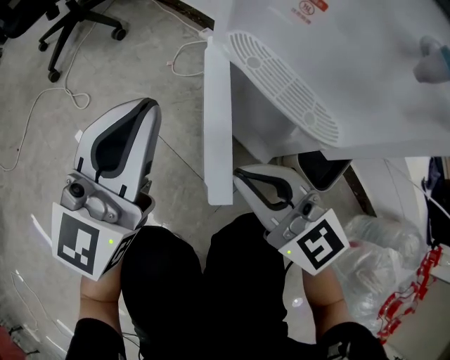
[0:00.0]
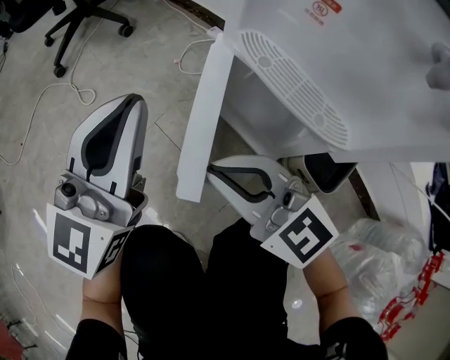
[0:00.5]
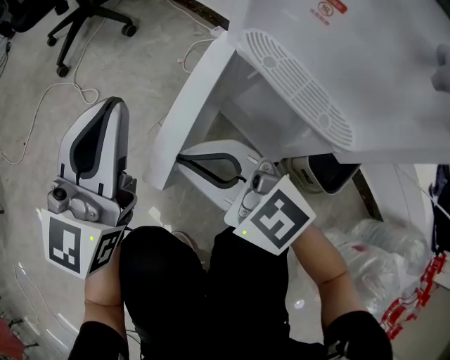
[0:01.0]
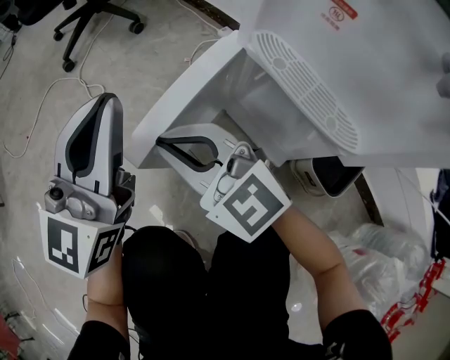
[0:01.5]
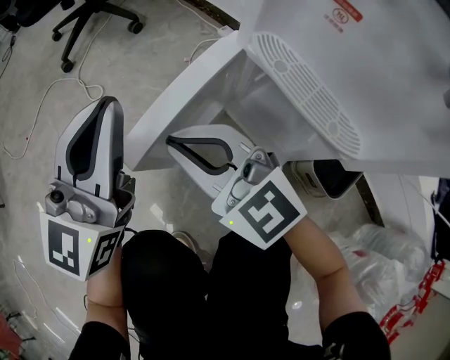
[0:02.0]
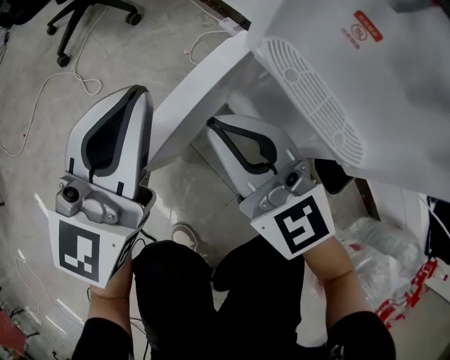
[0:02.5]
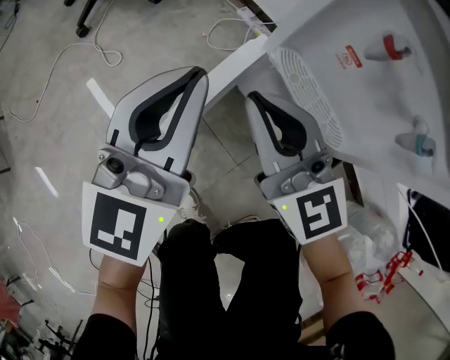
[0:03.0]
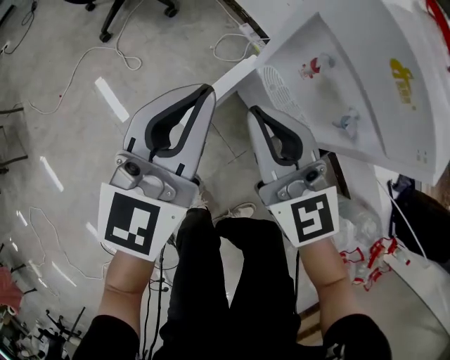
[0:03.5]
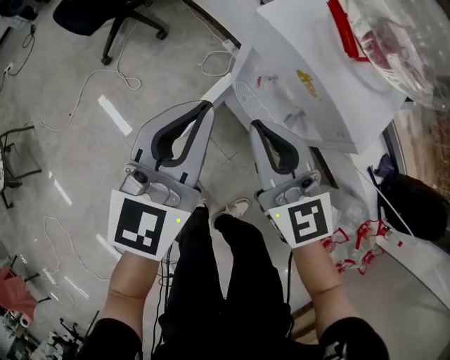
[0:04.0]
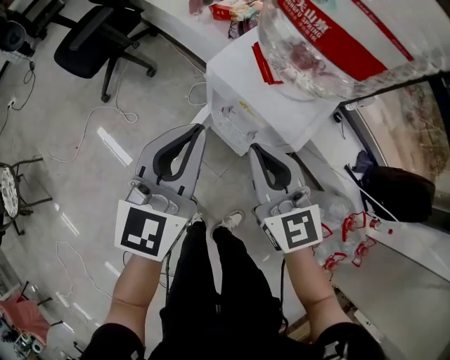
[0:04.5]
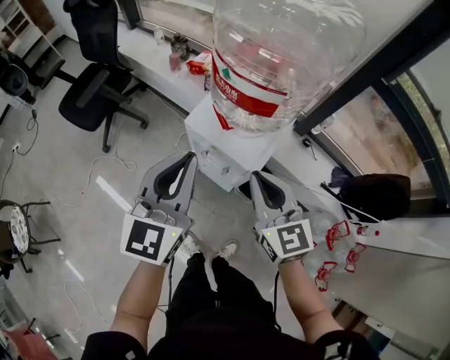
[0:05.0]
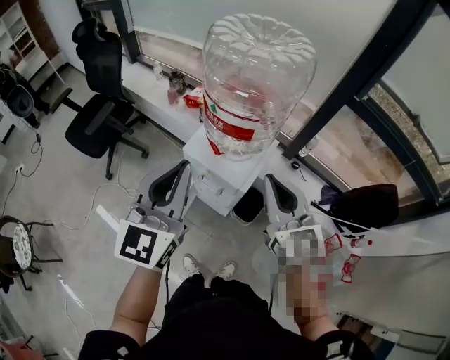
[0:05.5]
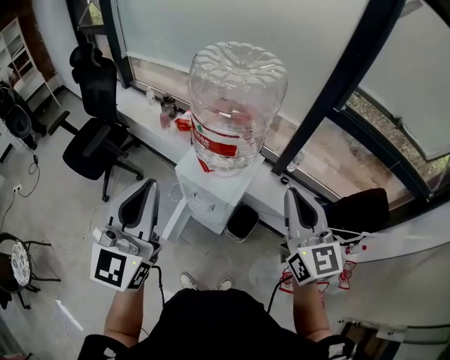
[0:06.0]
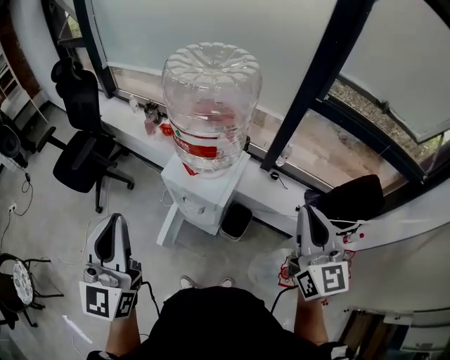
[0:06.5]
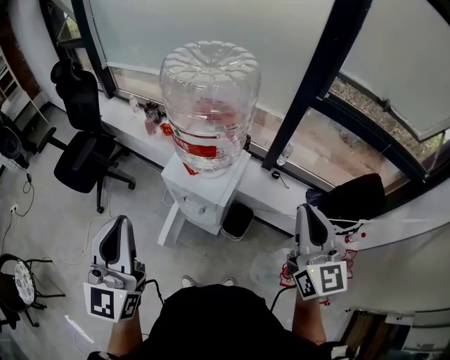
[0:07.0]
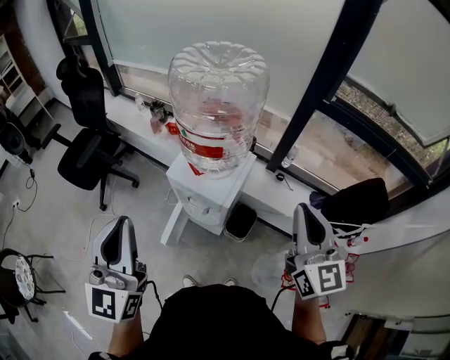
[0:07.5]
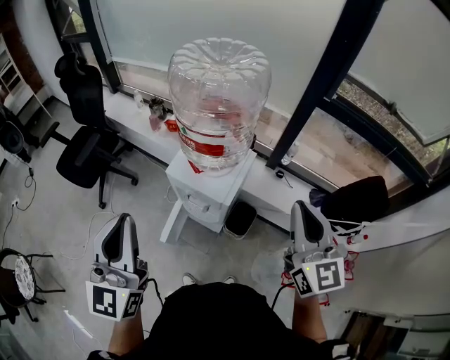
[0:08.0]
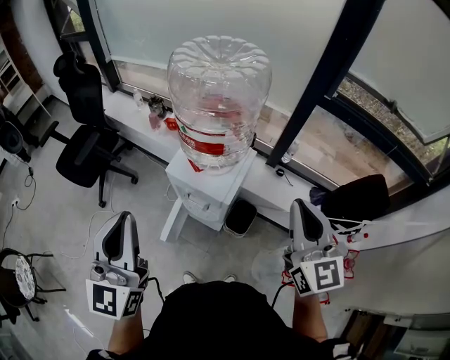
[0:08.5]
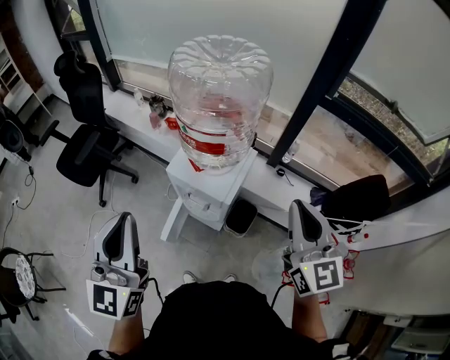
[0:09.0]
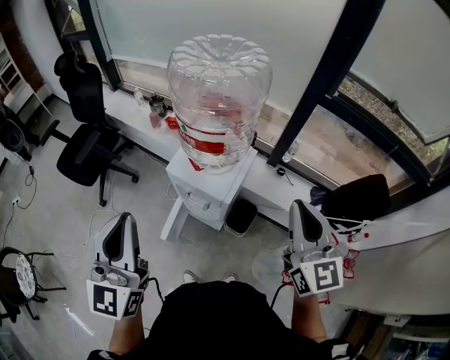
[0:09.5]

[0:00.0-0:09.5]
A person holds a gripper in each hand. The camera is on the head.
0:00.0 to 0:02.0: The left gripper moves to the left, roughly 5 cm. The right gripper moves to the left and forward, roughly 10 cm.
0:02.0 to 0:04.0: The two grippers go roughly 40 cm upward. The right gripper turns by approximately 30 degrees.
0:04.0 to 0:05.5: The left gripper is displaced upward by some 35 cm; the right gripper shifts about 35 cm upward and to the right, and swivels some 20 degrees.
0:05.5 to 0:07.5: The left gripper moves backward and to the left, approximately 10 cm; the right gripper travels to the right, backward and upward by approximately 15 cm.
0:07.5 to 0:09.5: The grippers make only small movements.

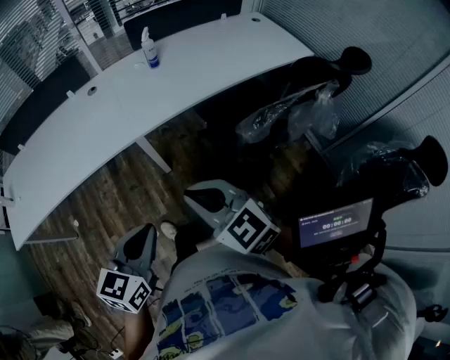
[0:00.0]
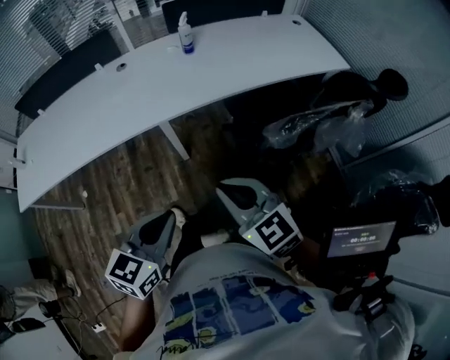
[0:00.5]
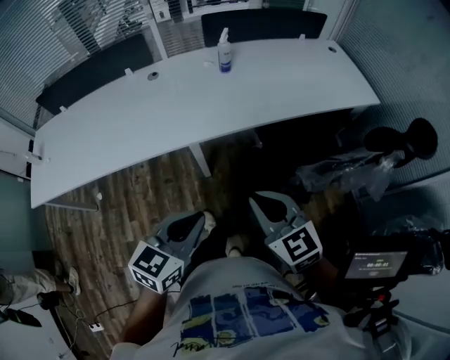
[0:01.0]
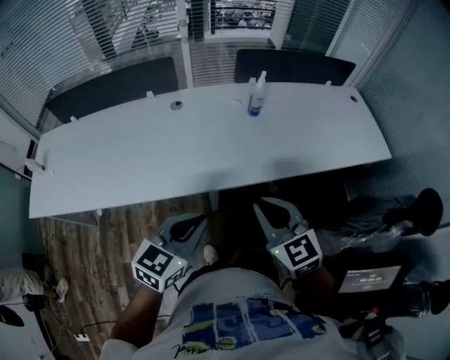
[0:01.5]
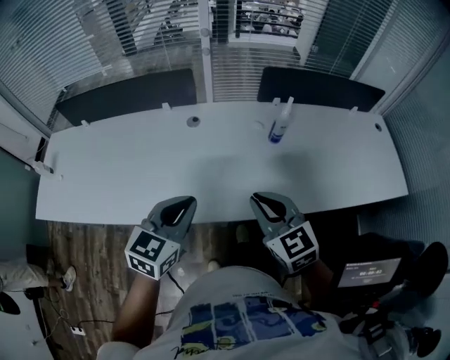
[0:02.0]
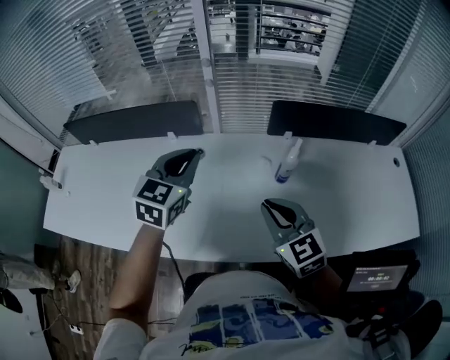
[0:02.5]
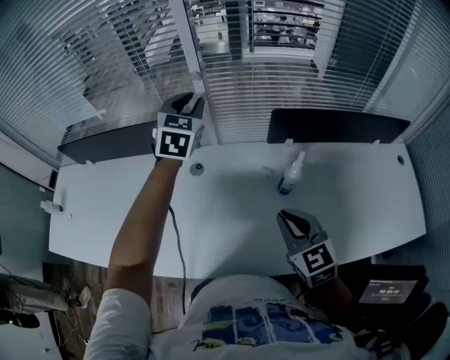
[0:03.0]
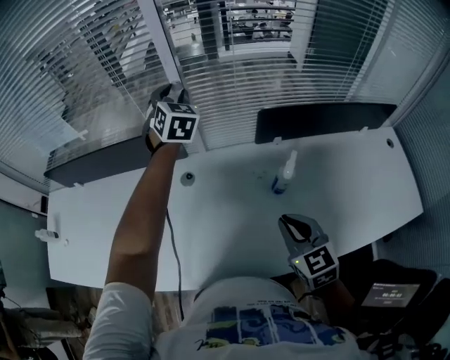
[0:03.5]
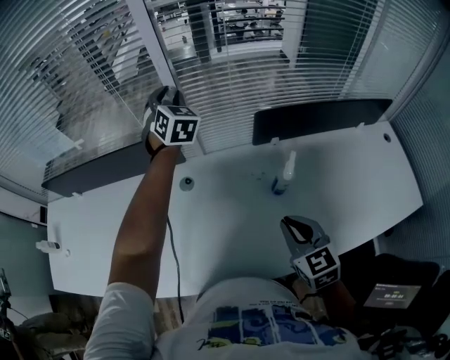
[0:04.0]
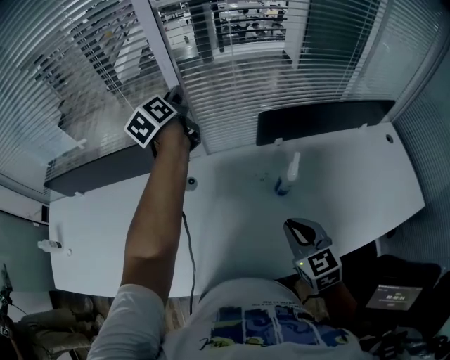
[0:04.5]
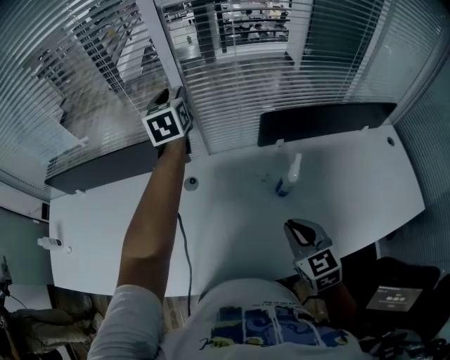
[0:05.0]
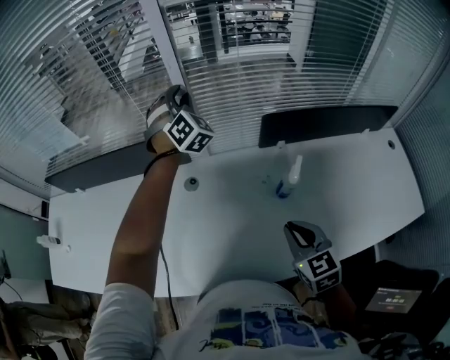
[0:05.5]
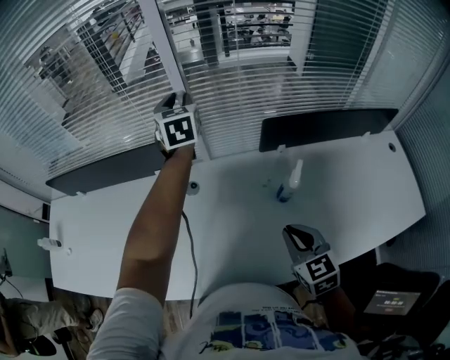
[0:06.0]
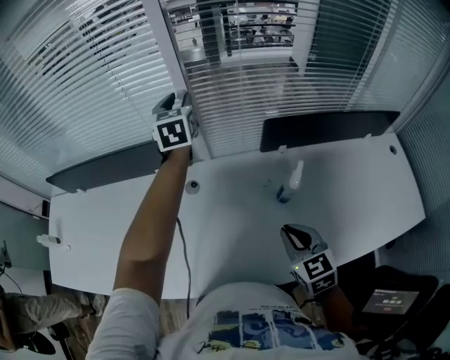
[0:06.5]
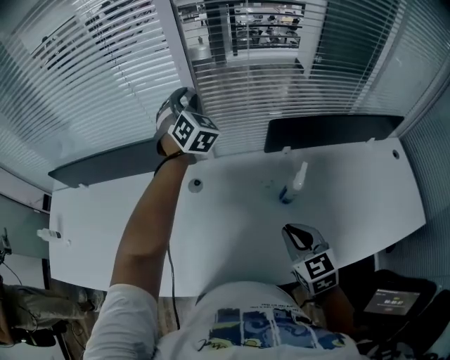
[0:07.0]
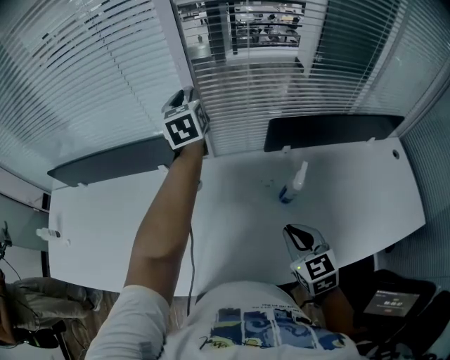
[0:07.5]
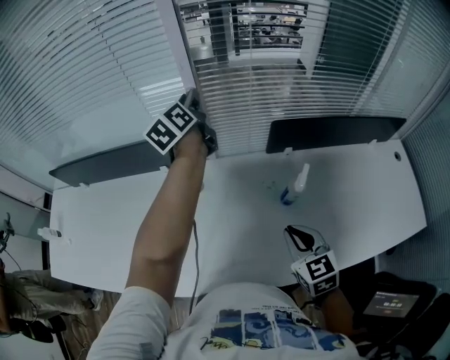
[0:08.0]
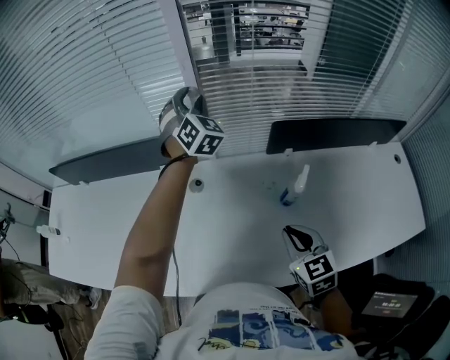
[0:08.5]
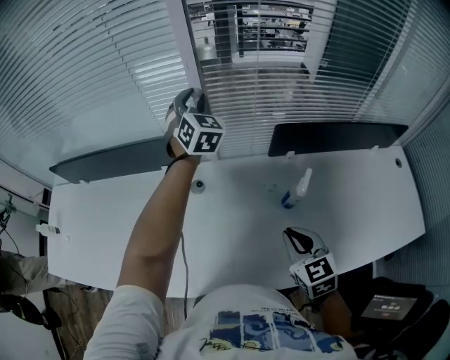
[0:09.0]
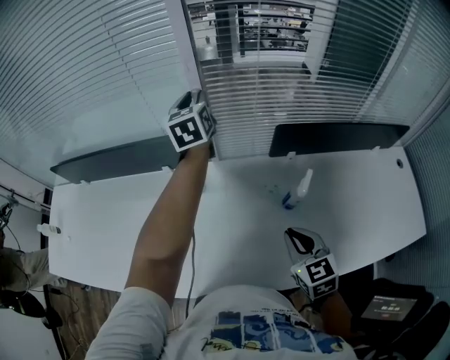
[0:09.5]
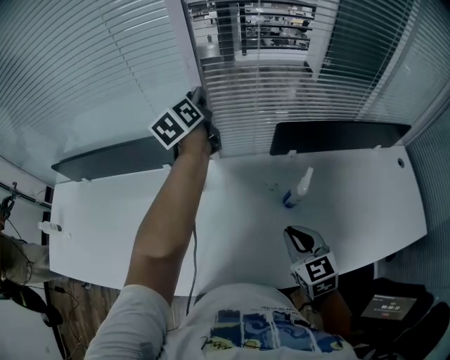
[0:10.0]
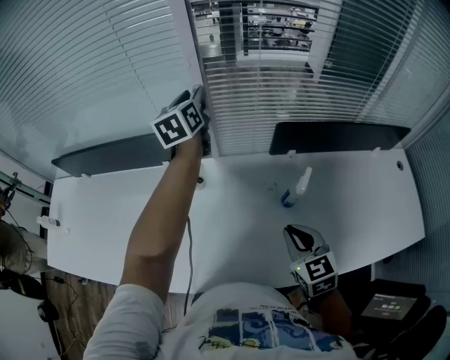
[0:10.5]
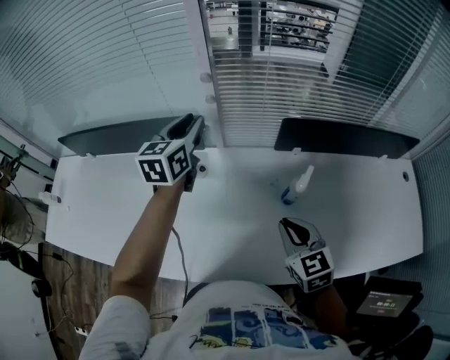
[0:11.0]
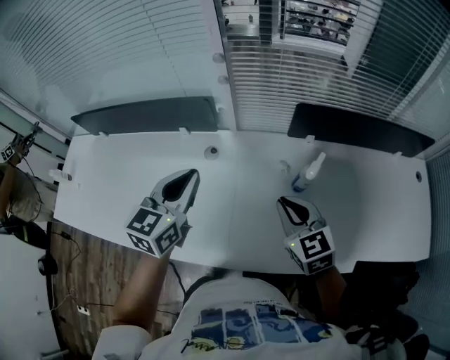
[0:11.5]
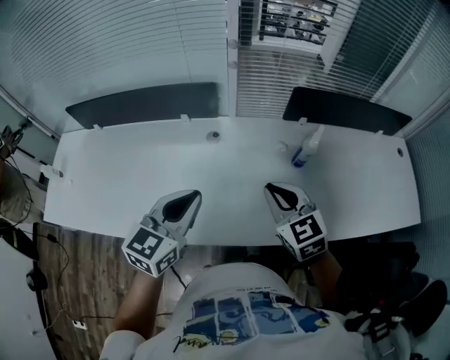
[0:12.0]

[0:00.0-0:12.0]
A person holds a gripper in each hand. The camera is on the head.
0:00.0 to 0:02.0: Both grippers are carried forward, about 40 cm.
0:02.0 to 0:04.0: The left gripper moves forward, approximately 60 cm, rotates some 50 degrees, and opens its fingers. The right gripper is displaced forward and to the right by some 25 cm.
0:04.0 to 0:06.0: The left gripper rotates about 30 degrees.
0:06.0 to 0:08.0: The left gripper rotates around the line of its fingers by approximately 40 degrees, counterclockwise from behind.
0:10.0 to 0:12.0: The right gripper goes roughly 15 cm to the left, backward and upward. Meanwhile the left gripper travels backward by some 50 cm, swivels roughly 40 degrees, and closes up.

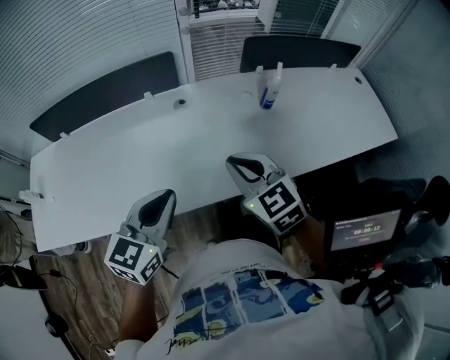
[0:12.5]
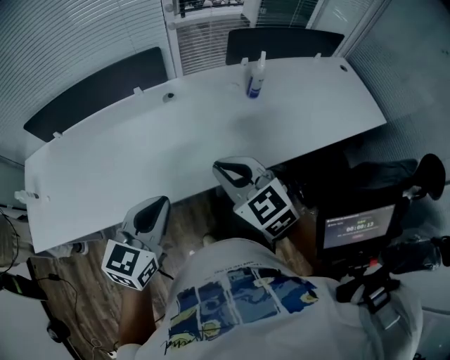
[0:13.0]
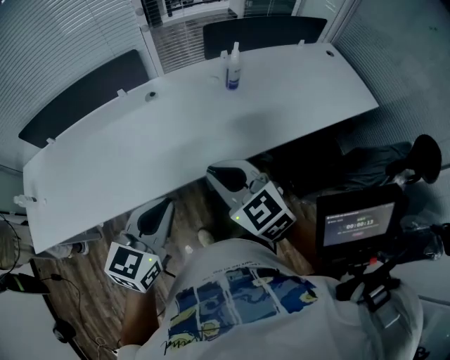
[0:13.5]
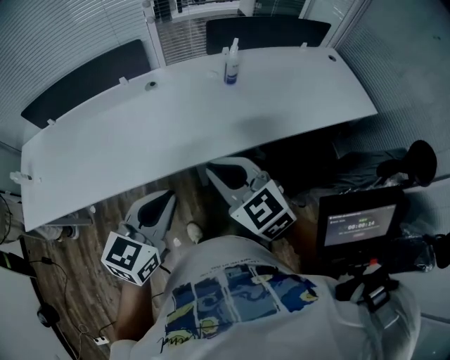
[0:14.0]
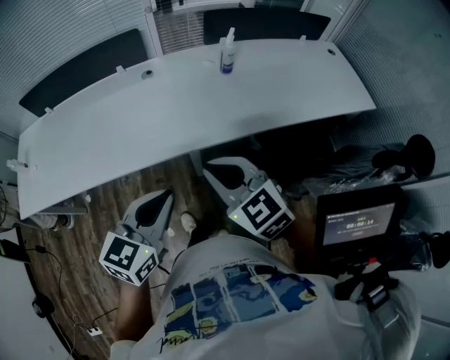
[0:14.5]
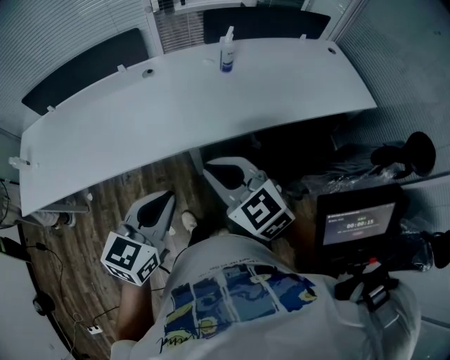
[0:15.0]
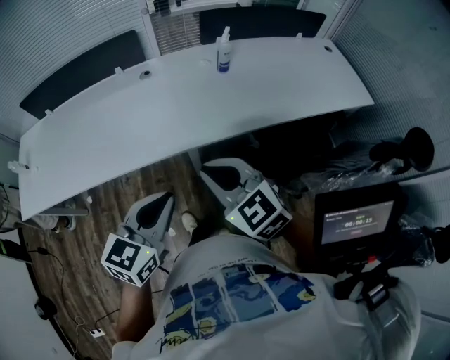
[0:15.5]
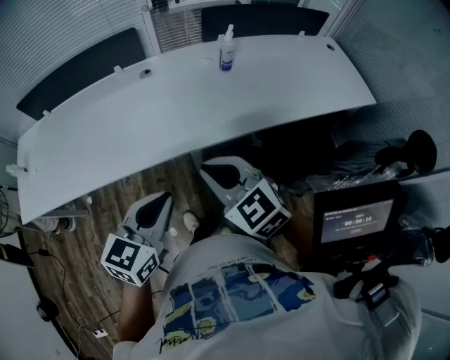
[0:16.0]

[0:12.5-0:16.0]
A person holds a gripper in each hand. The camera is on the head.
0:12.5 to 0:14.5: The two grippers go some 20 cm backward and to the right.
0:14.5 to 0:16.0: The grippers stay close to where they were, moving slightly.

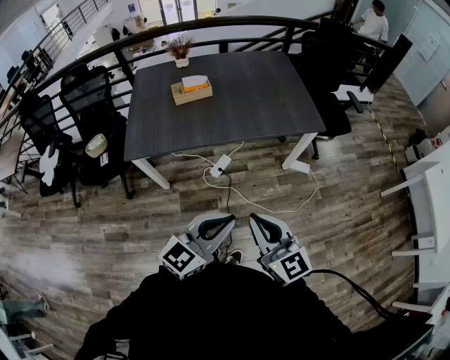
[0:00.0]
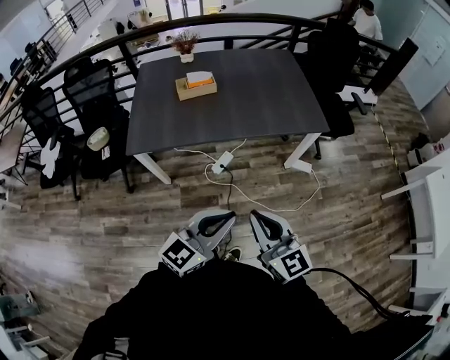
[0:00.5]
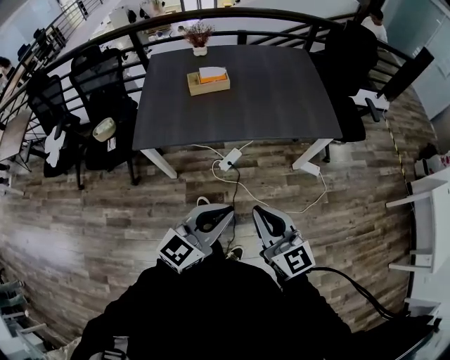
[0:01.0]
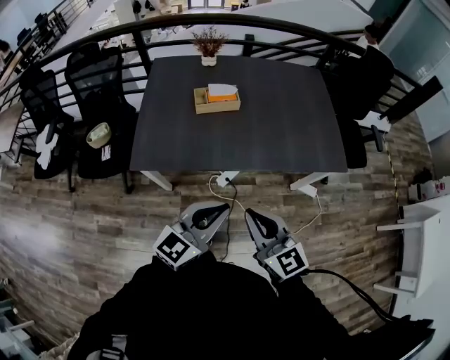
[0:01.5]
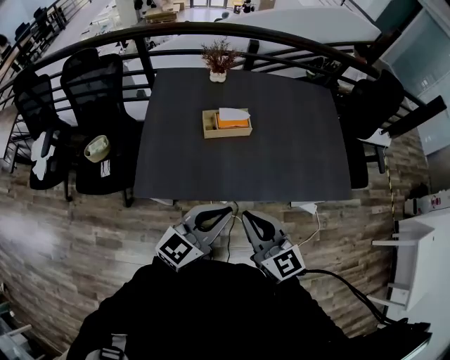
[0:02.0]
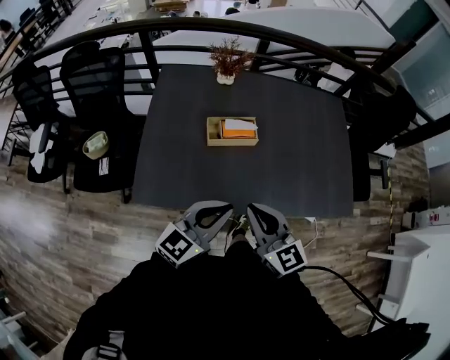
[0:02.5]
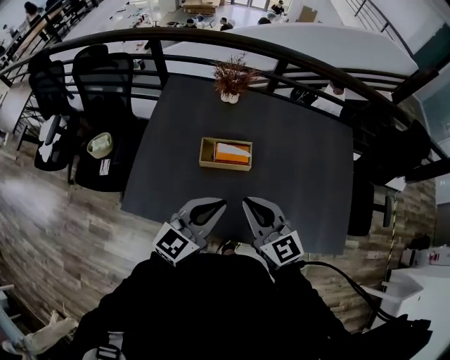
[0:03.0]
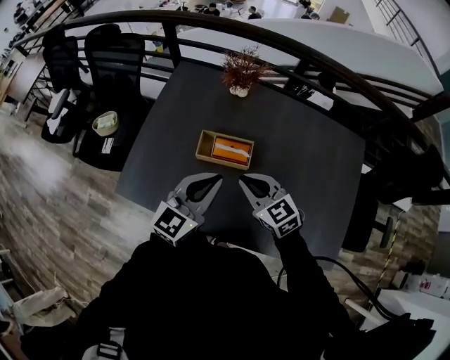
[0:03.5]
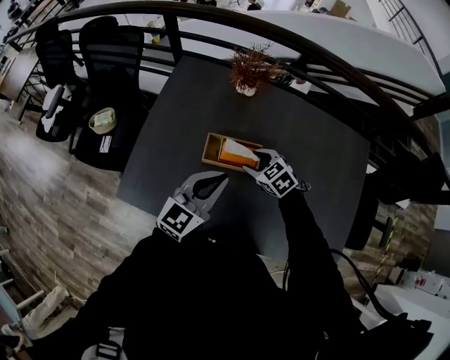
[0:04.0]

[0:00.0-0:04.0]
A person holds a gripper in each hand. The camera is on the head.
0:00.0 to 0:02.0: The two grippers go roughly 35 cm forward and to the left.
0:02.0 to 0:04.0: The left gripper changes place by approximately 30 cm, and swivels roughly 20 degrees. The right gripper moves about 40 cm, points its fingers some 40 degrees further downward, and opens.
